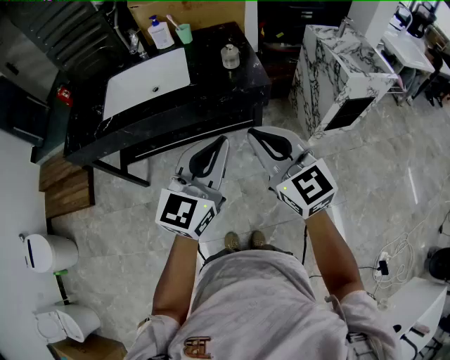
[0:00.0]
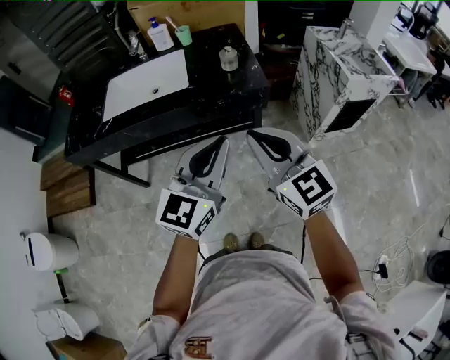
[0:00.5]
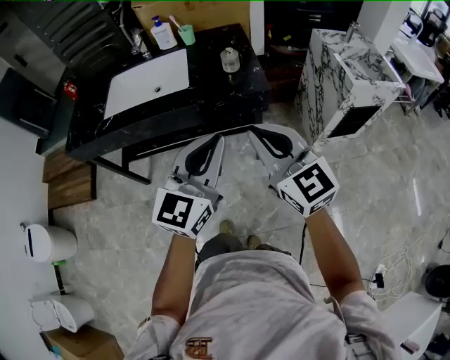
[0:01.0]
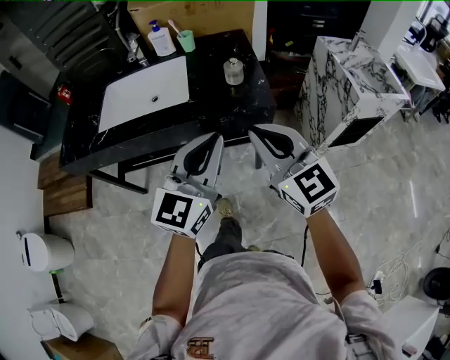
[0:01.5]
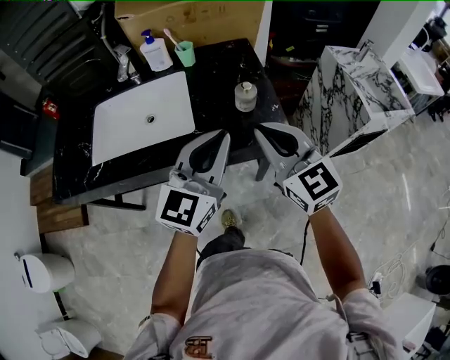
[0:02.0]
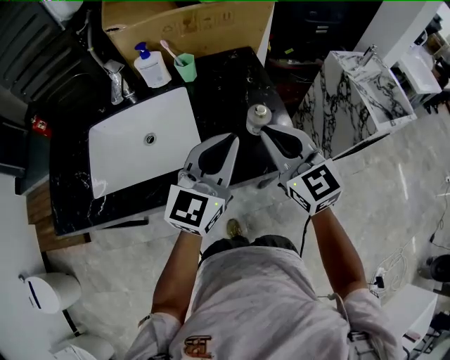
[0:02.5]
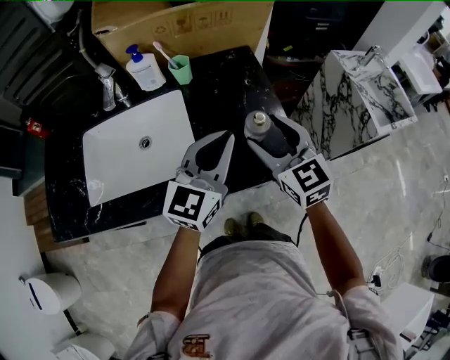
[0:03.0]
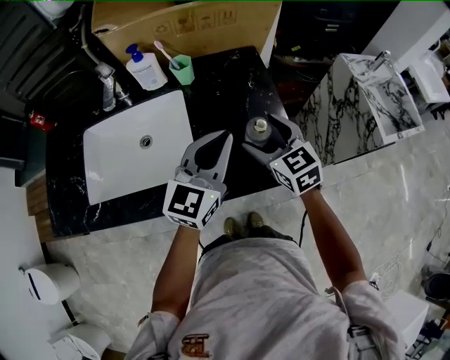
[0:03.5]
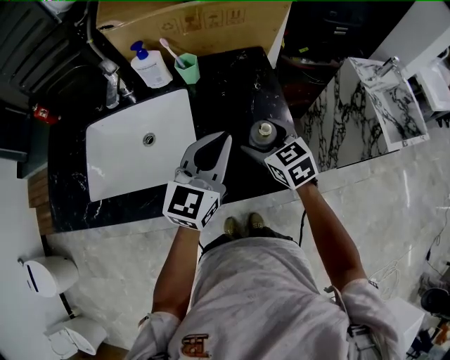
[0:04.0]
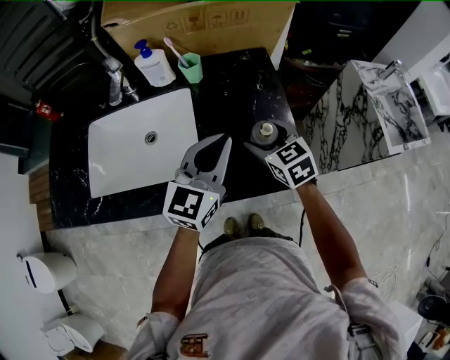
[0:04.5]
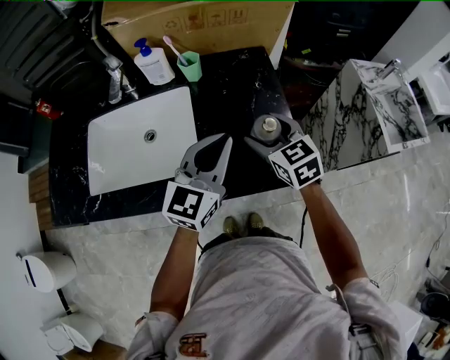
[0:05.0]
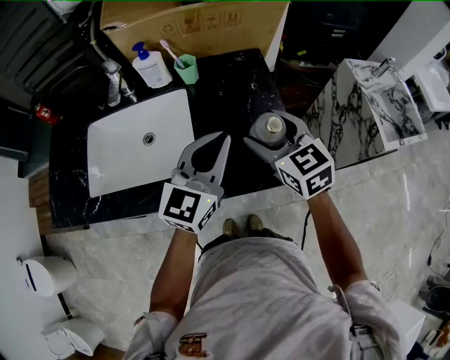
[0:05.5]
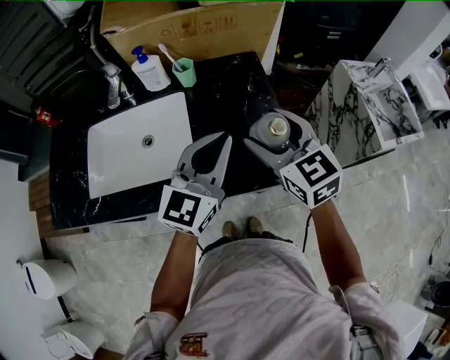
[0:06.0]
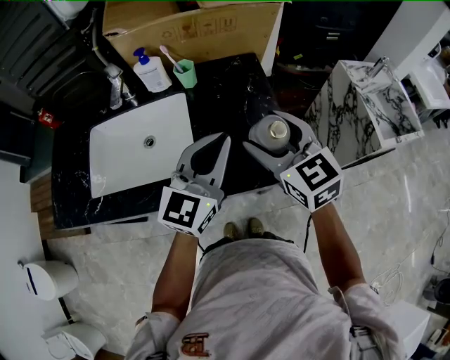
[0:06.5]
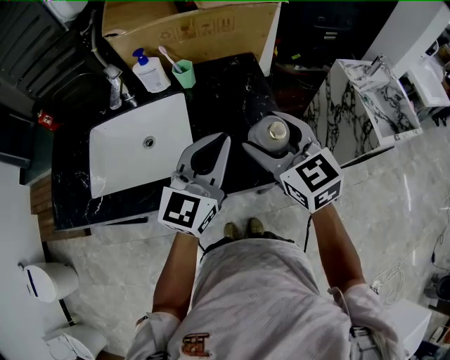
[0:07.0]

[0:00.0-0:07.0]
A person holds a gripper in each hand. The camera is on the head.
0:00.0 to 0:02.0: The grippers both shift forward by roughly 25 cm.
0:02.0 to 0:03.5: The left gripper moves forward, approximately 15 cm. The right gripper moves forward and downward, approximately 25 cm, and opens its fingers.
0:03.5 to 0:05.0: There are only small adjustments of the grippers.
0:05.0 to 0:07.0: The right gripper is displaced upward and backward by roughly 15 cm; the left gripper travels upward by about 5 cm.

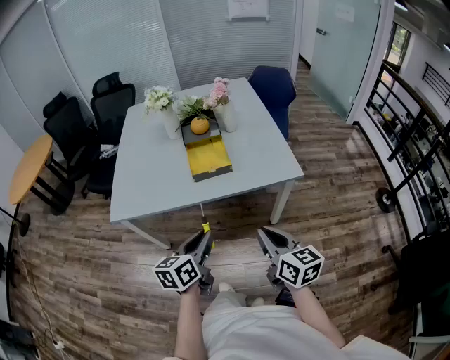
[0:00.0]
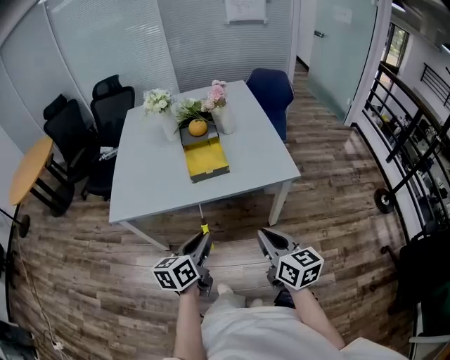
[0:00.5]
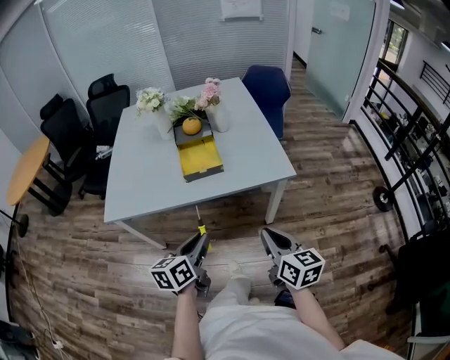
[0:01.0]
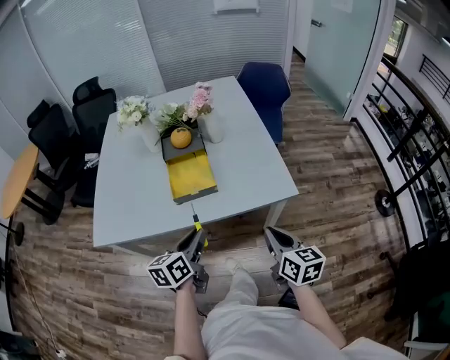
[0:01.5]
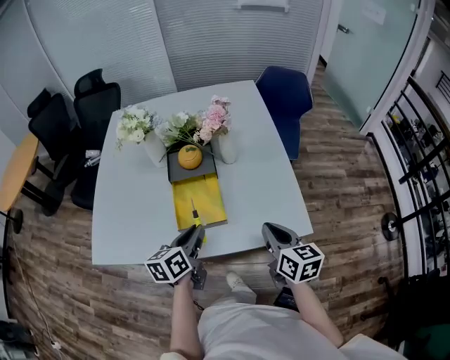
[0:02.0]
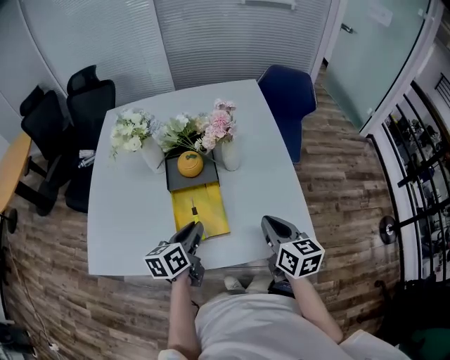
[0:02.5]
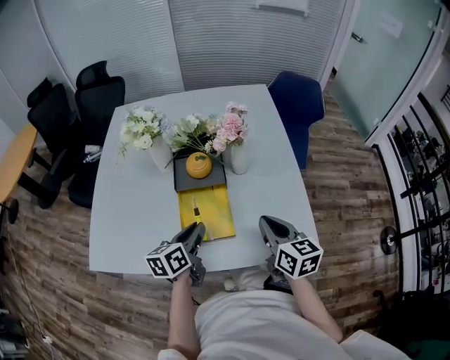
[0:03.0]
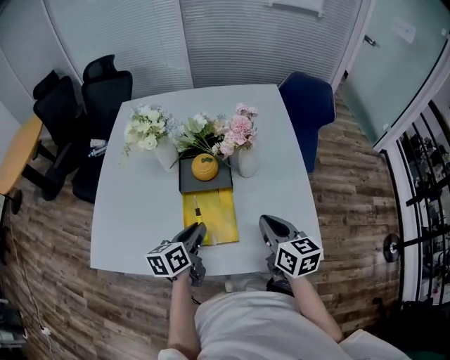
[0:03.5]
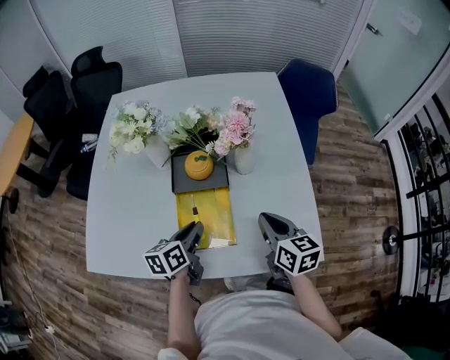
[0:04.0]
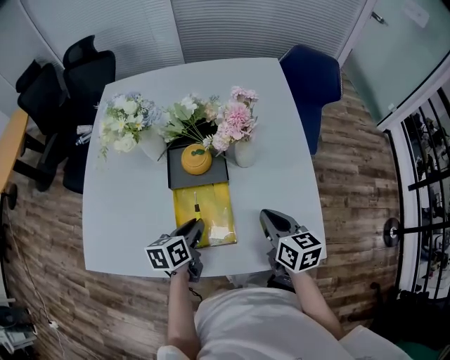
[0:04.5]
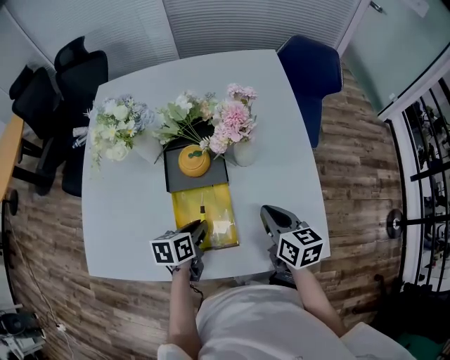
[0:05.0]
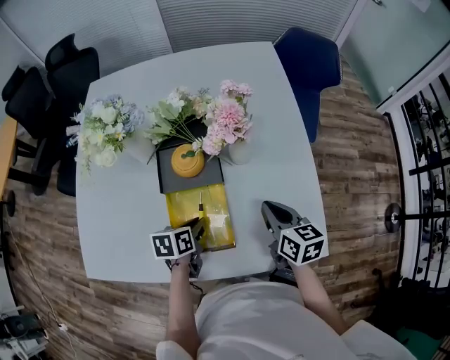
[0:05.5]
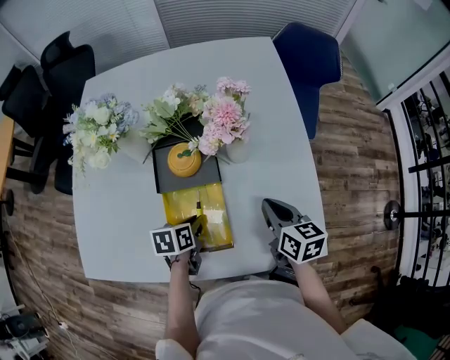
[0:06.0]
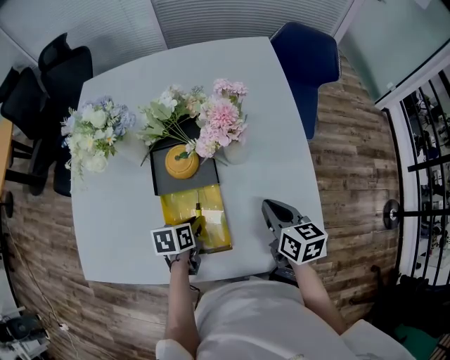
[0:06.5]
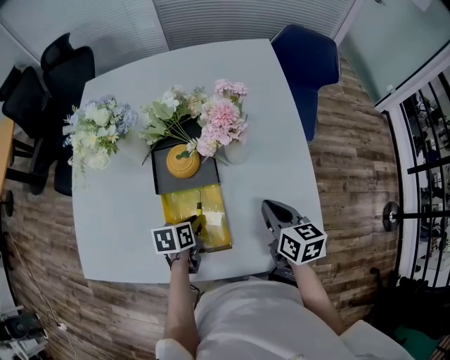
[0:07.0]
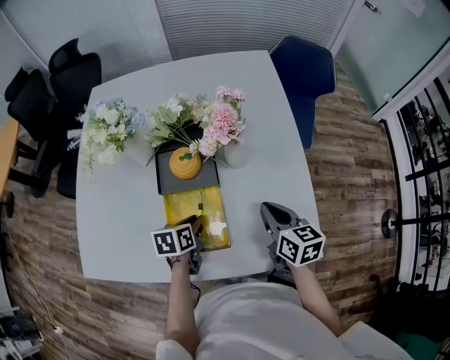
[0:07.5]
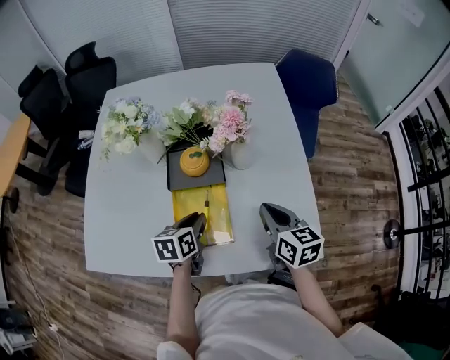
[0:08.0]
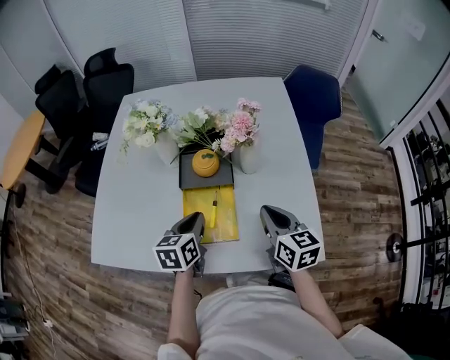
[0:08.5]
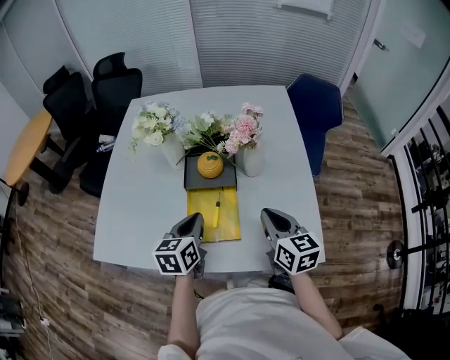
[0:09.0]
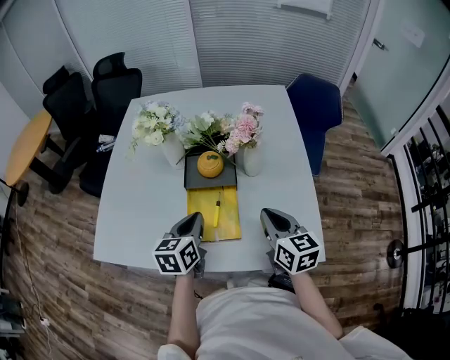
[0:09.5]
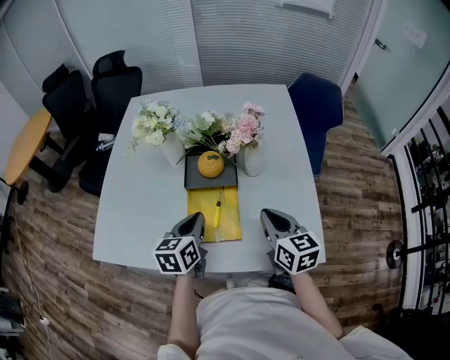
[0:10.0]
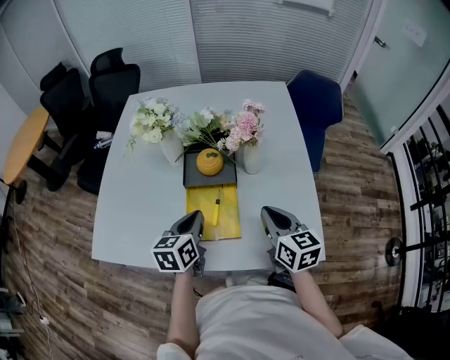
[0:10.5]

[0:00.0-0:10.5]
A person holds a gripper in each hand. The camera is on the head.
0:00.0 to 0:02.0: The two grippers go some 30 cm forward.
0:02.0 to 0:04.0: The left gripper heads forward and downward, covering roughly 15 cm. Meanwhile the right gripper shifts some 15 cm forward.
0:04.0 to 0:06.5: The left gripper shifts some 10 cm downward, and turns by roughly 30 degrees. Meanwhile the right gripper is displaced downward and forward by some 10 cm.
0:06.5 to 0:08.5: The left gripper shifts roughly 15 cm upward, and turns by about 30 degrees. The right gripper heads upward and backward, covering some 10 cm.
0:08.5 to 0:10.5: The grippers stay close to where they were, moving slightly.

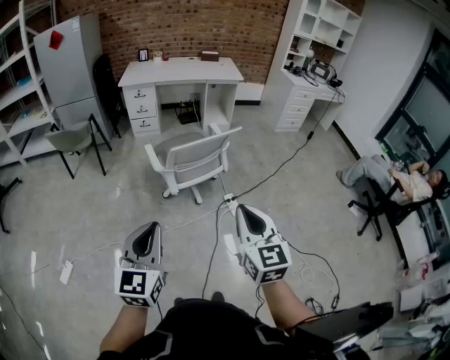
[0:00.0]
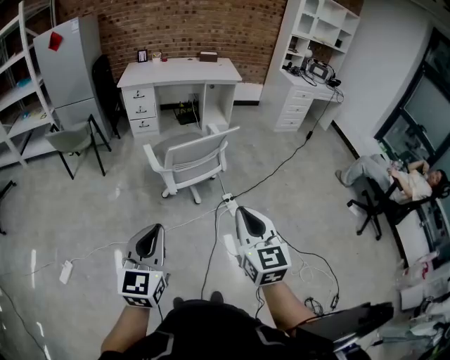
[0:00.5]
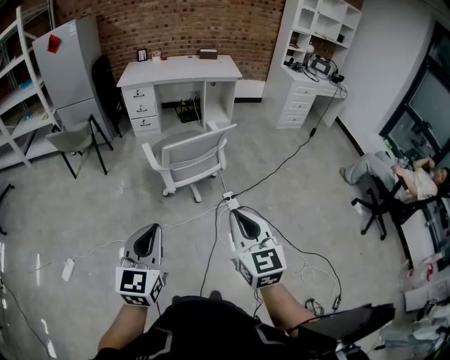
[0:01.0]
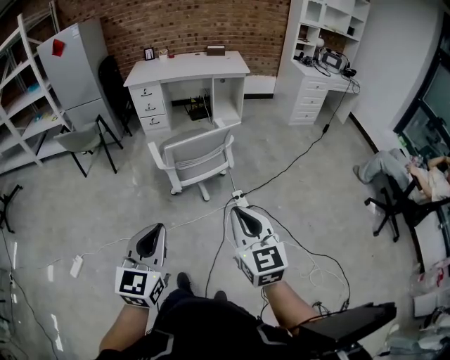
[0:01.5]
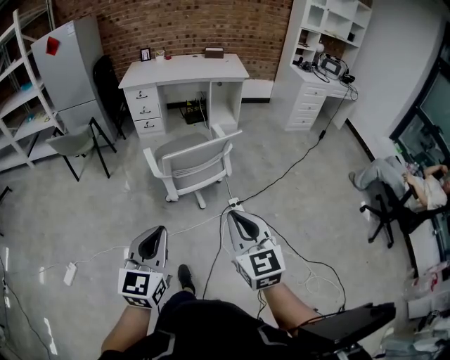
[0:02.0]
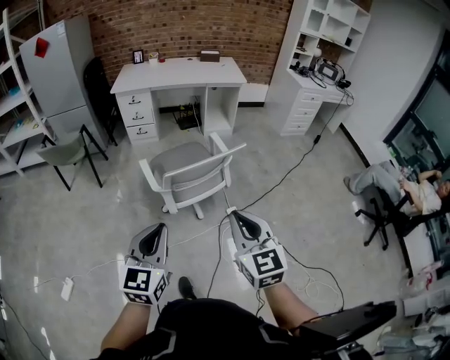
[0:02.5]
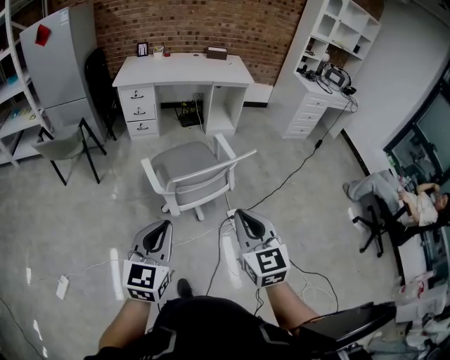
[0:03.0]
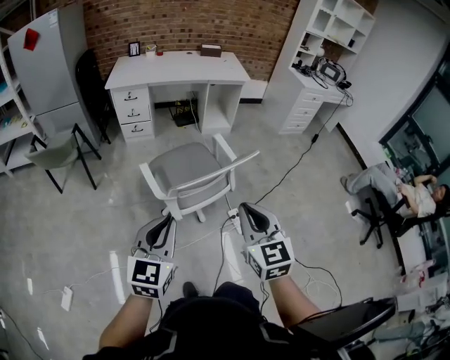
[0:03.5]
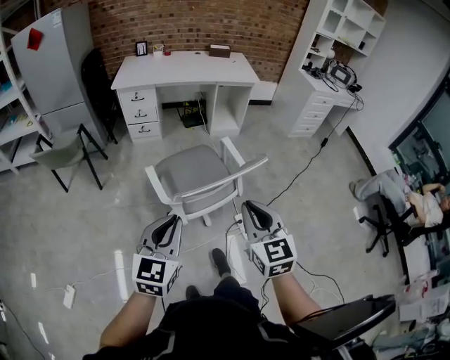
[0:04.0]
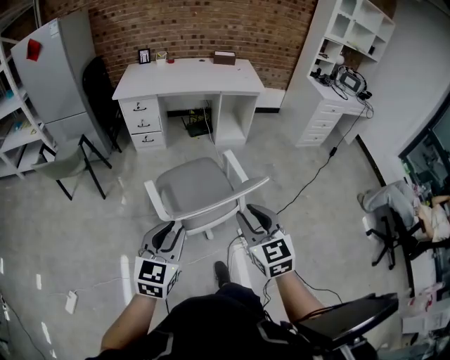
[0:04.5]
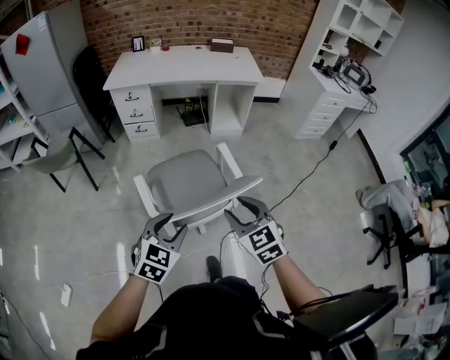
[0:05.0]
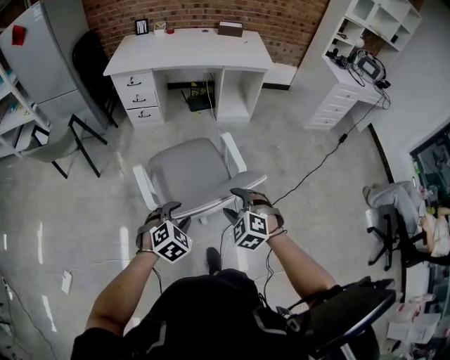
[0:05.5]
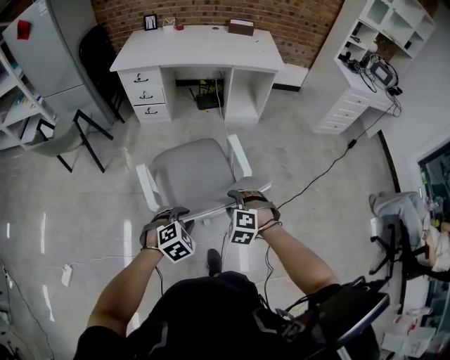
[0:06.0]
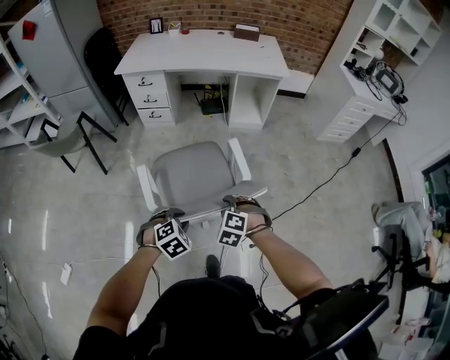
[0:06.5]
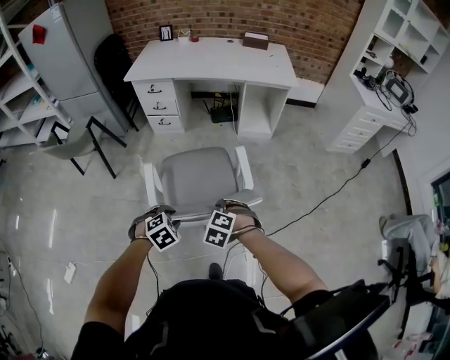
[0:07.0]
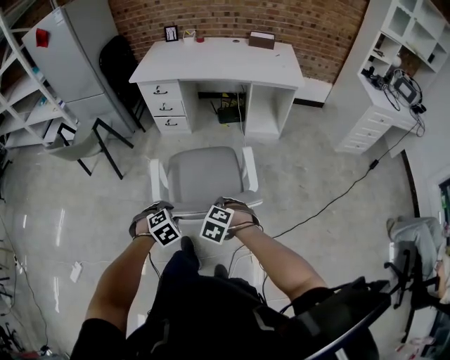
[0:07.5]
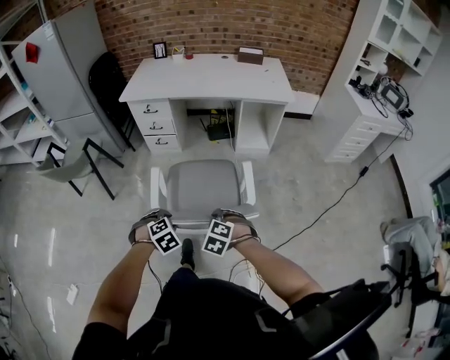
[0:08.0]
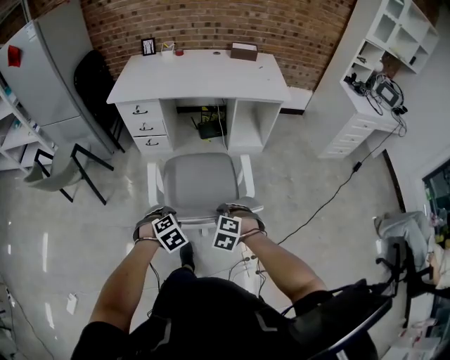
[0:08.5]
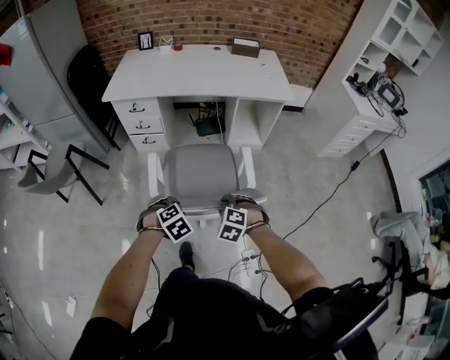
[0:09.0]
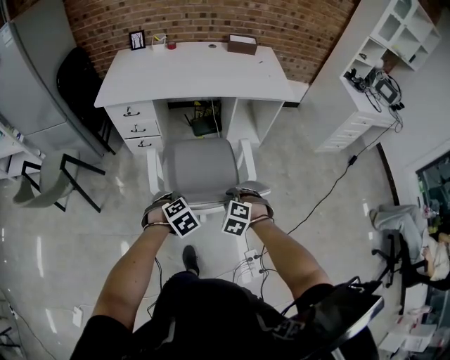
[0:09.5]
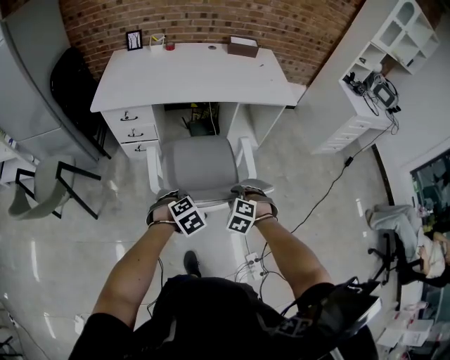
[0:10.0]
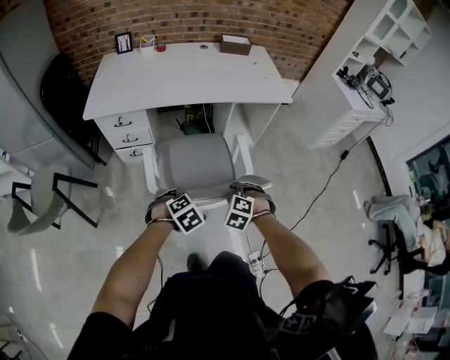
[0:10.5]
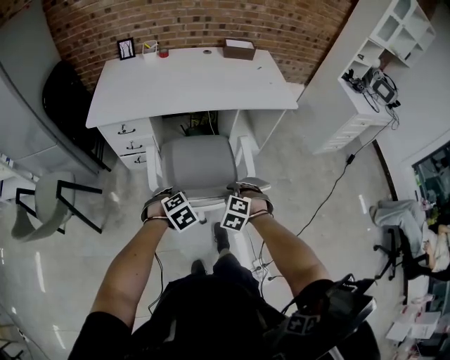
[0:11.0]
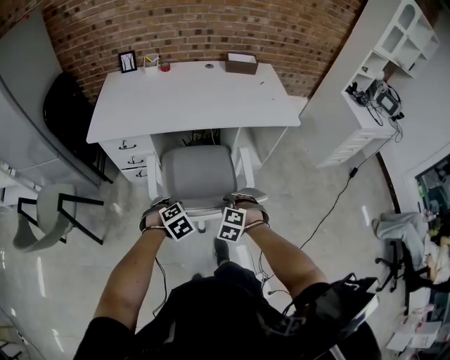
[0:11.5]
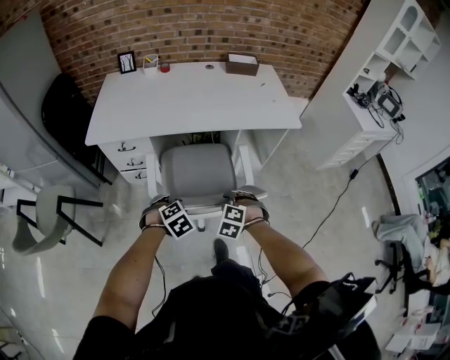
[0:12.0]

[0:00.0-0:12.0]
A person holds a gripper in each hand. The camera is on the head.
0:00.0 to 0:02.0: The left gripper goes roughly 10 cm to the right and forward. Meanwhile the right gripper travels forward by approximately 5 cm.
0:02.0 to 0:04.0: The two grippers go roughly 25 cm forward.
0:04.0 to 0:06.0: The right gripper heads downward and forward, covering some 35 cm, angles its fingers downward, by some 40 degrees, and opens its fingers. Meanwhile the left gripper shifts some 35 cm downward, forward and to the right, tilts its fingers some 50 degrees downward, and opens its fingers.
0:06.0 to 0:08.0: The grippers both shift forward and to the left by roughly 15 cm.
0:08.0 to 0:10.0: The left gripper changes place by some 25 cm, while the right gripper changes place by about 25 cm.
0:10.0 to 0:12.0: Both grippers move forward and to the left, some 15 cm.
